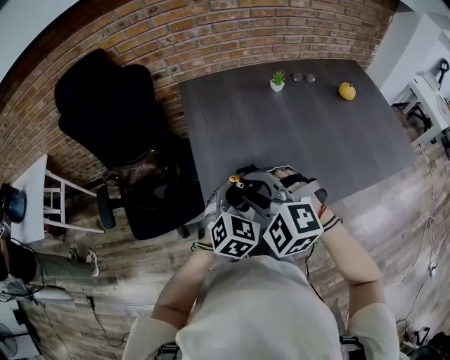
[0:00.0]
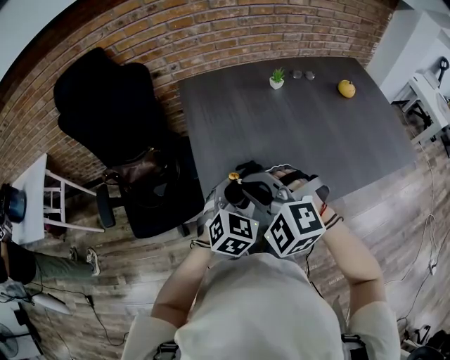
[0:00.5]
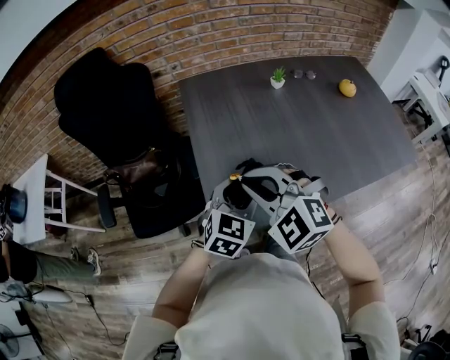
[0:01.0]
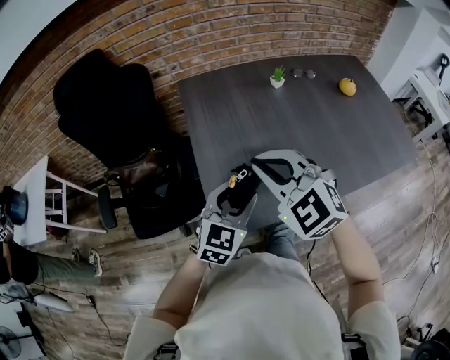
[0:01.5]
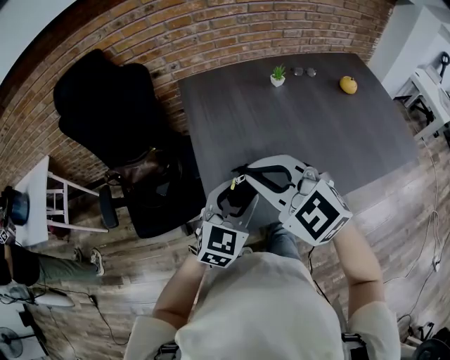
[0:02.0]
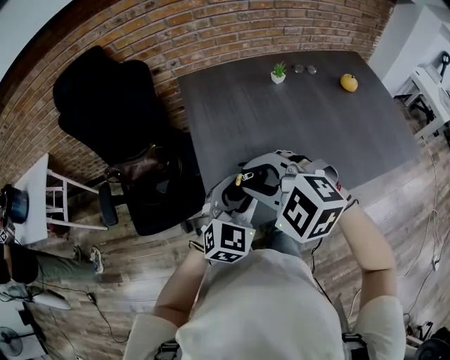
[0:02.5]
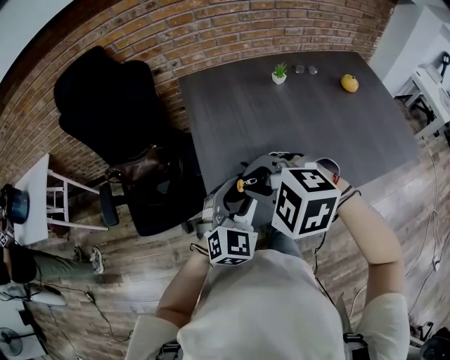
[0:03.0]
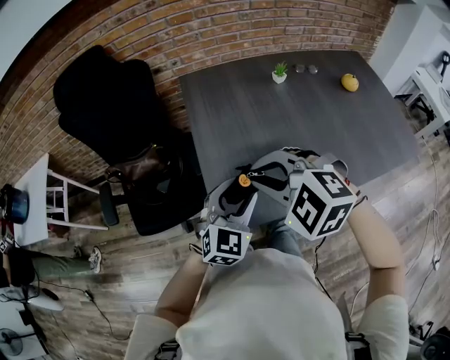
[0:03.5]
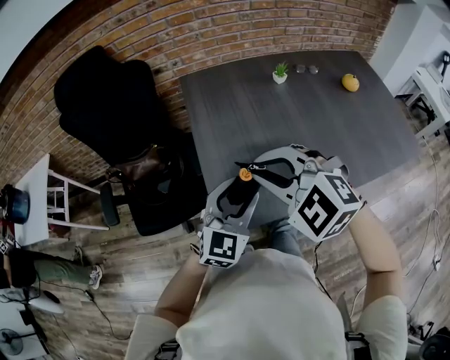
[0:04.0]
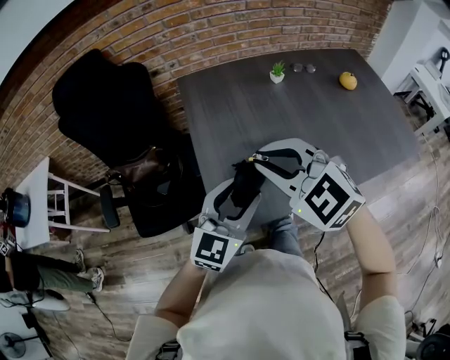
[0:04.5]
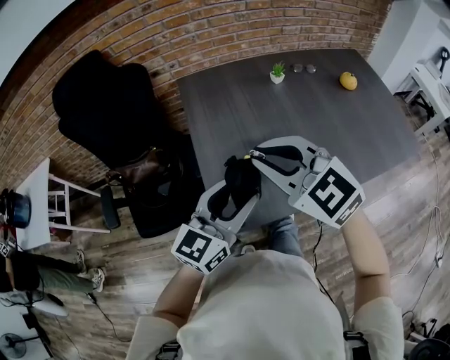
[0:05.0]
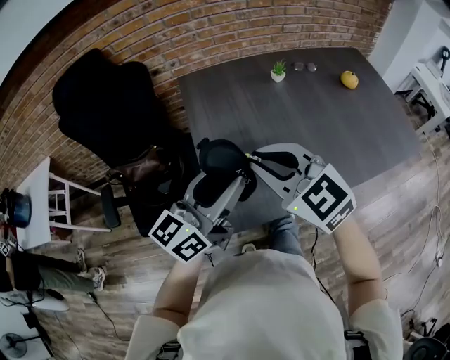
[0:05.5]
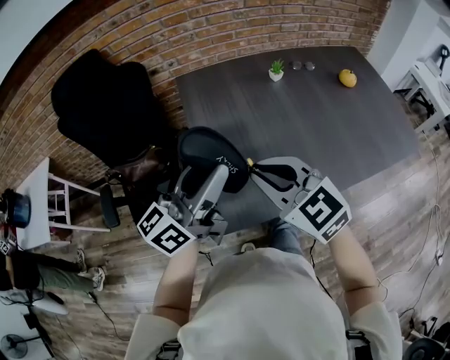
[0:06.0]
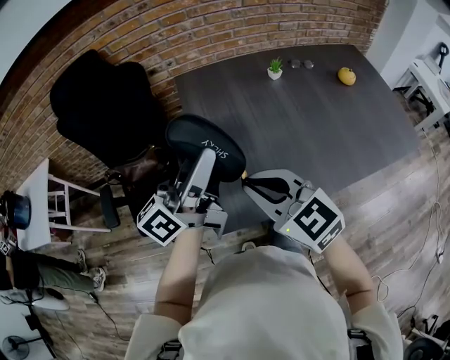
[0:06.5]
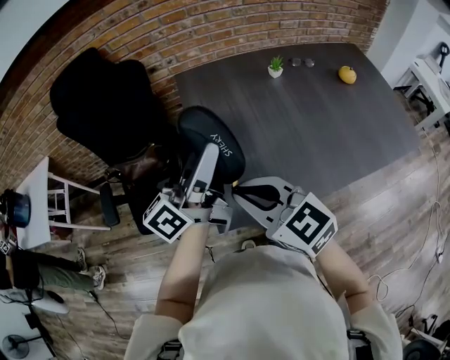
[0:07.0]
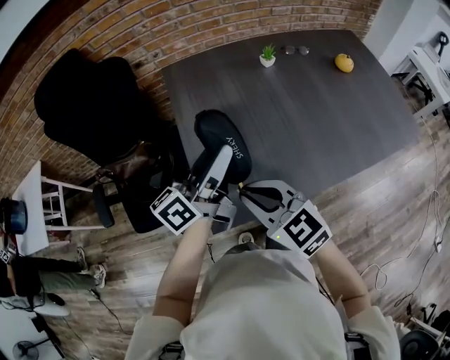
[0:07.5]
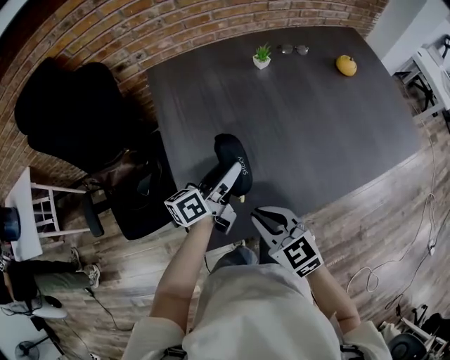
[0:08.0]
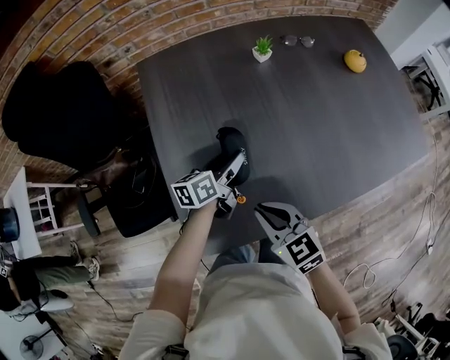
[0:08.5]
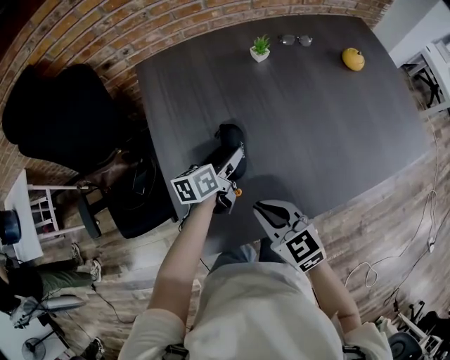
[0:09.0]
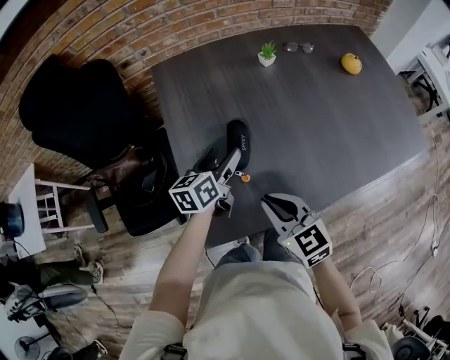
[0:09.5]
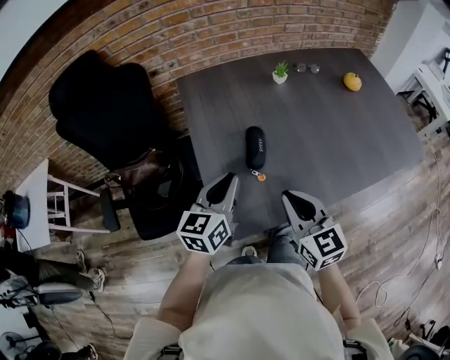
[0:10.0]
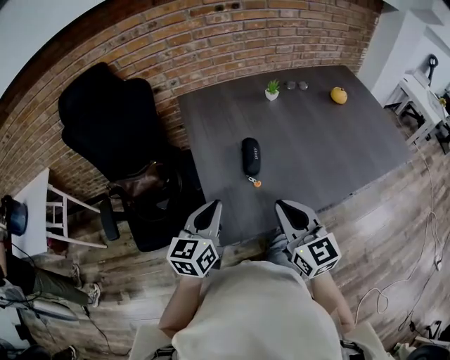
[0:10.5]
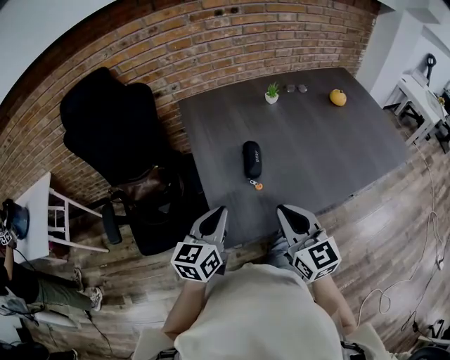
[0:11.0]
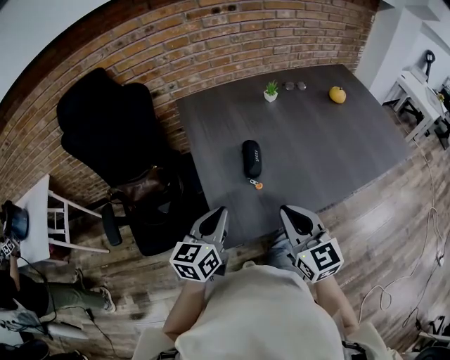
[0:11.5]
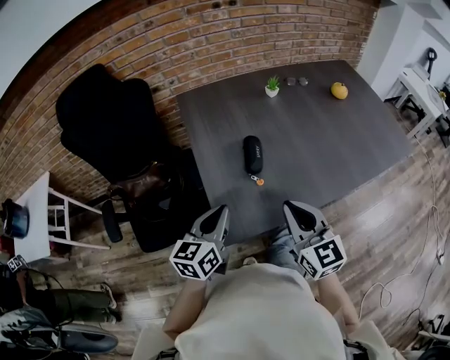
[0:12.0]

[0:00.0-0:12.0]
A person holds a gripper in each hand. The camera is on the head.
0:00.0 to 0:02.0: The right gripper travels upward by some 10 cm, and changes its angle by about 30 degrees.
0:04.0 to 0:06.0: The right gripper swivels roughly 30 degrees; the left gripper moves upward, approximately 15 cm, and twists some 50 degrees counterclockwise, seen from behind.
0:06.0 to 0:08.0: The right gripper moves downward, about 15 cm. The left gripper heads downward, to the right and forward, covering approximately 25 cm, and rotates roughly 30 degrees.
0:08.0 to 0:10.0: The right gripper travels upward by approximately 5 cm, and rotates about 20 degrees; the left gripper is displaced backward, to the left and upward by some 15 cm, changes its angle by roughly 40 degrees, and closes its fingers.
0:10.0 to 0:12.0: The left gripper goes roughly 10 cm backward. The right gripper changes place by roughly 5 cm.

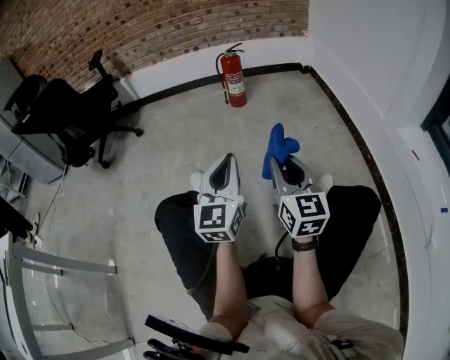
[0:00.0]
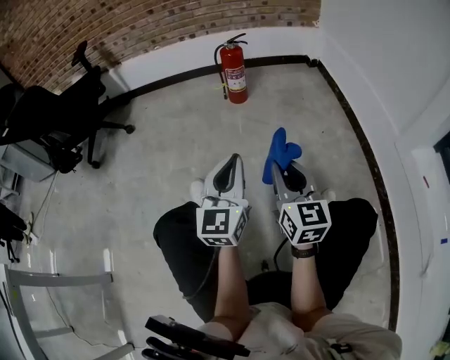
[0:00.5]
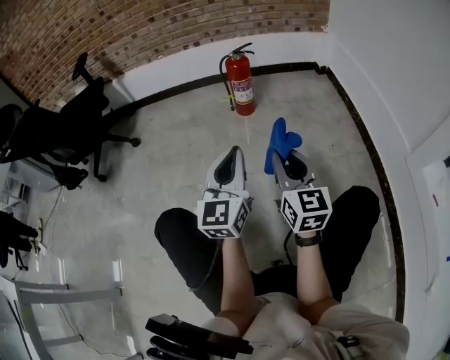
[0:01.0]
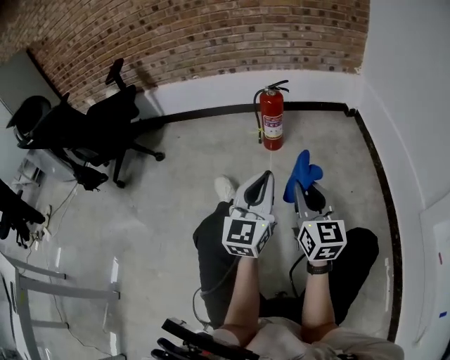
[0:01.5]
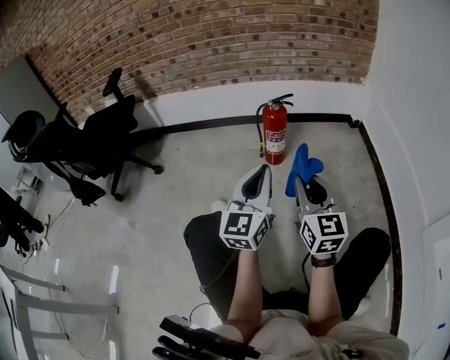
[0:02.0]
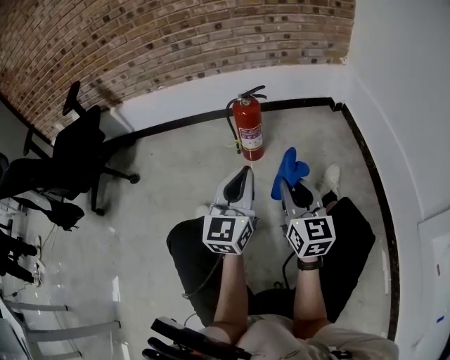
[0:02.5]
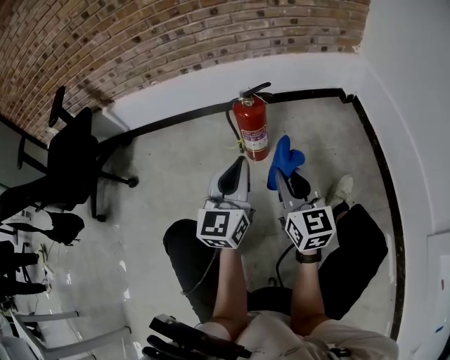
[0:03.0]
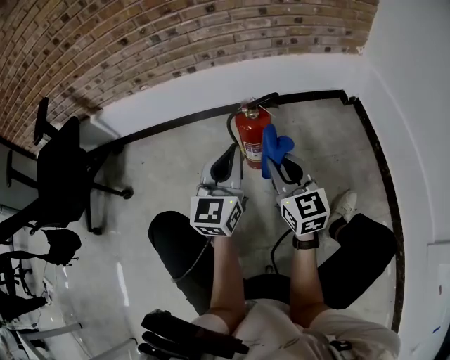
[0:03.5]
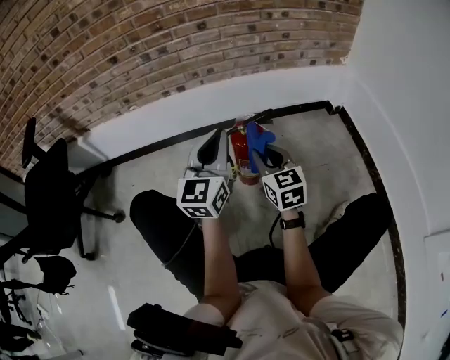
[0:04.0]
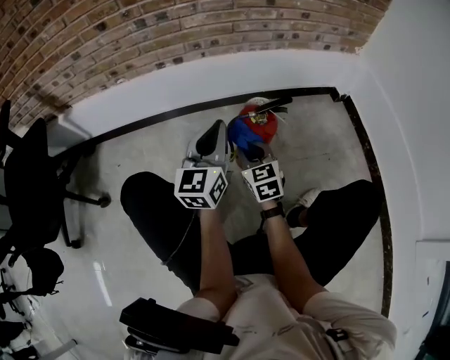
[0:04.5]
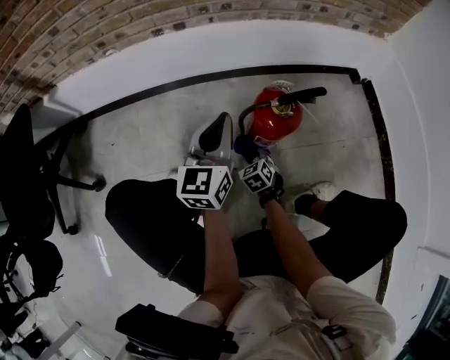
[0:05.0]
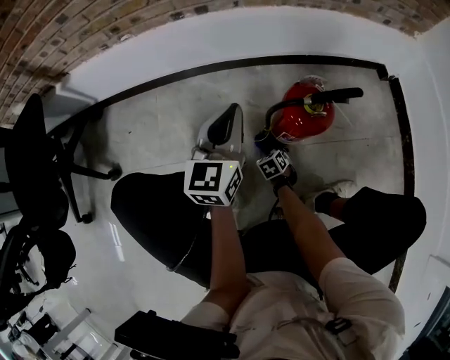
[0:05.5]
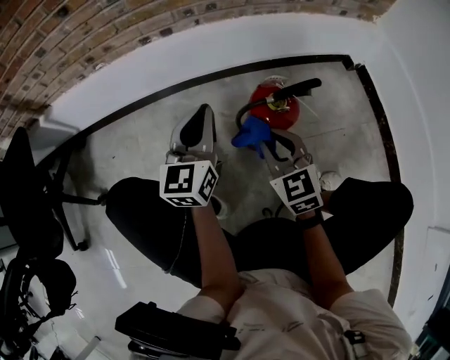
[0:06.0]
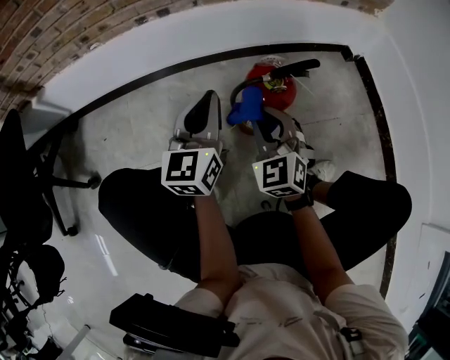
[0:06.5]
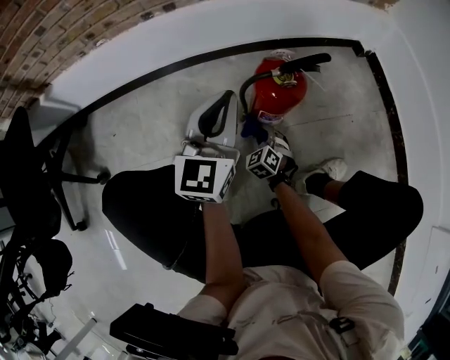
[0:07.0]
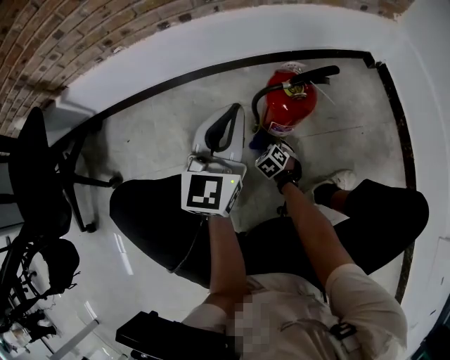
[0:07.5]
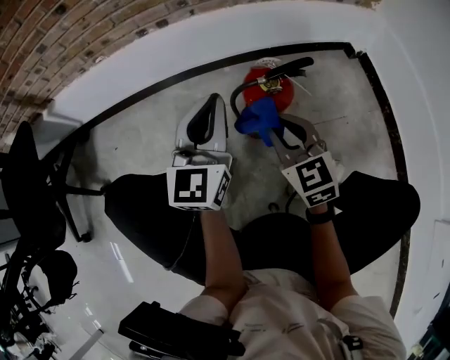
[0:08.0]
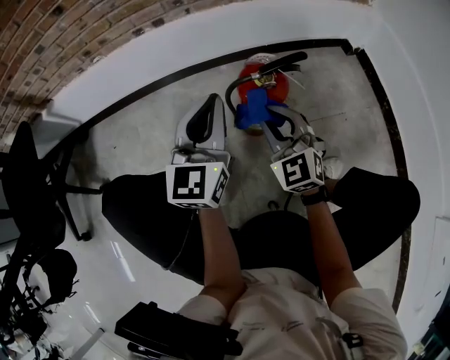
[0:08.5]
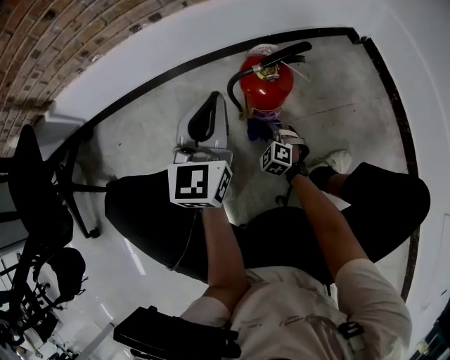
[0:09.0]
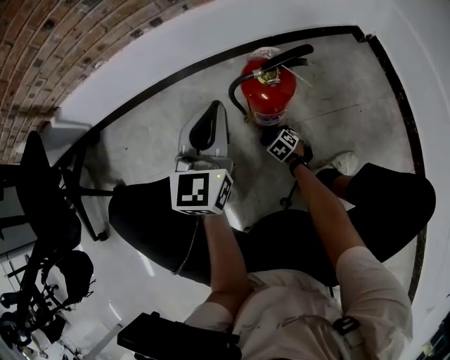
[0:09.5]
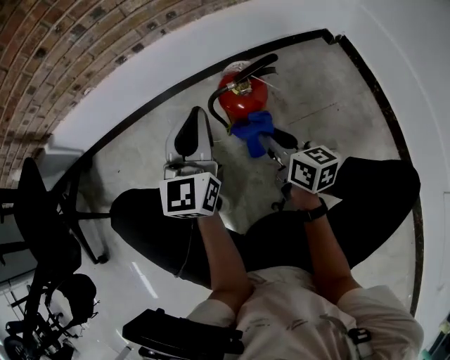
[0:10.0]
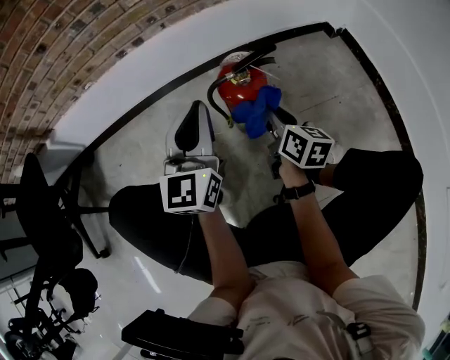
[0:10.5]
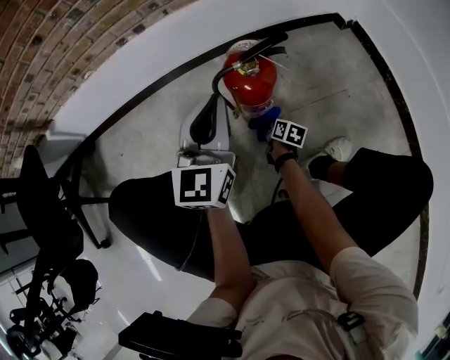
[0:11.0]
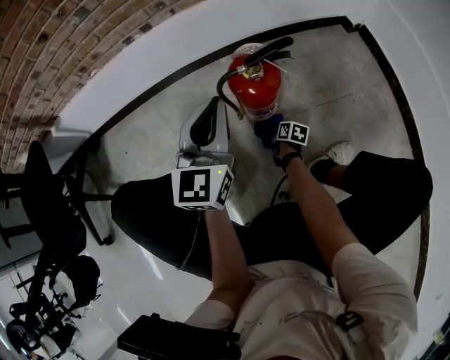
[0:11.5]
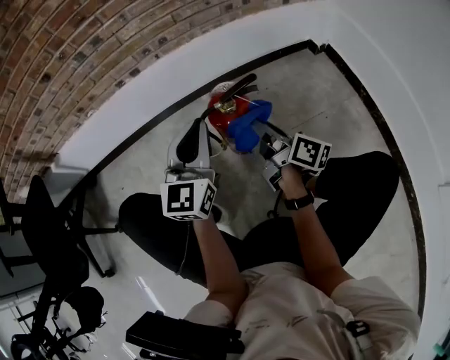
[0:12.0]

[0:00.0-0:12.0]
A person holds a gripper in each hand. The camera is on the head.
0:00.0 to 0:02.0: The grippers both shift forward by roughly 35 cm.
0:02.0 to 0:04.0: The two grippers go some 35 cm forward.
0:04.0 to 0:06.0: The left gripper heads downward, forward and to the left, covering roughly 20 cm; the right gripper shifts some 5 cm to the left, and travels downward and back again, about 50 cm each way.
0:06.0 to 0:08.0: The left gripper changes place by about 10 cm; the right gripper travels downward and back again, about 35 cm each way.
0:08.0 to 0:10.0: The right gripper travels downward and back again, about 40 cm each way, and twists some 50 degrees clockwise, seen from behind.
0:10.0 to 0:12.0: The right gripper goes downward and returns, some 35 cm each way, and swivels about 30 degrees.

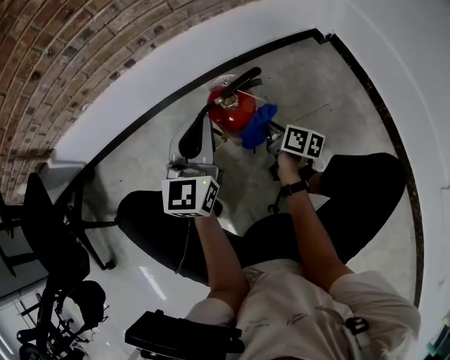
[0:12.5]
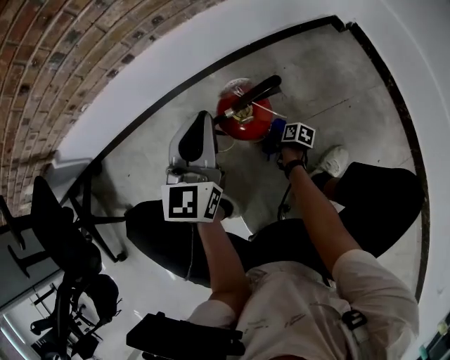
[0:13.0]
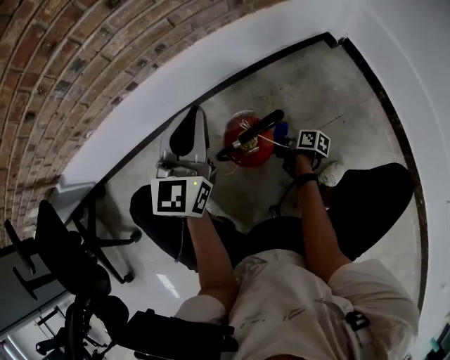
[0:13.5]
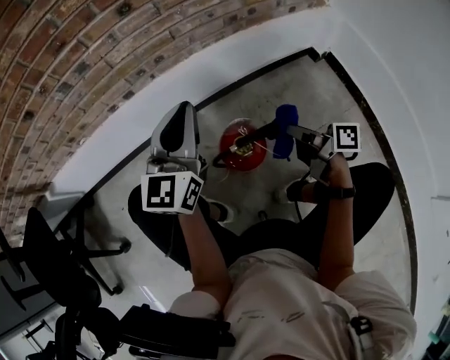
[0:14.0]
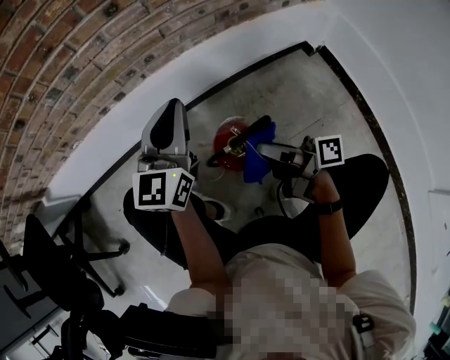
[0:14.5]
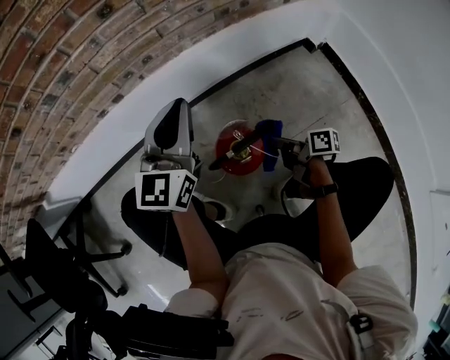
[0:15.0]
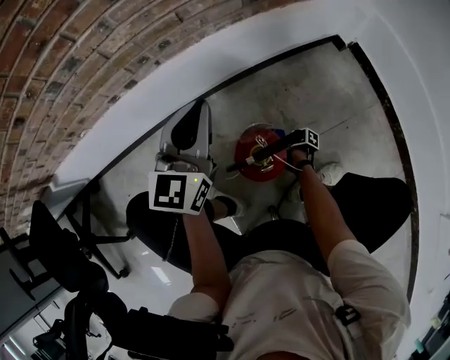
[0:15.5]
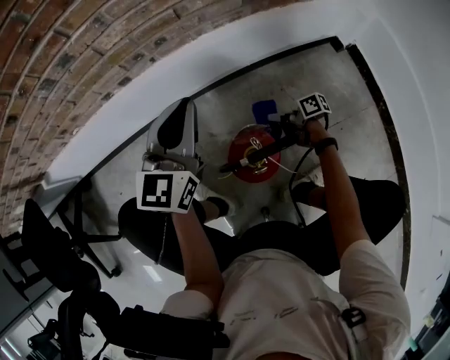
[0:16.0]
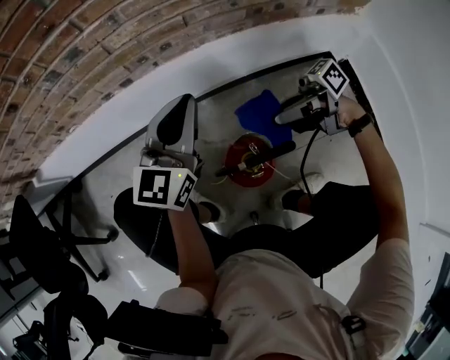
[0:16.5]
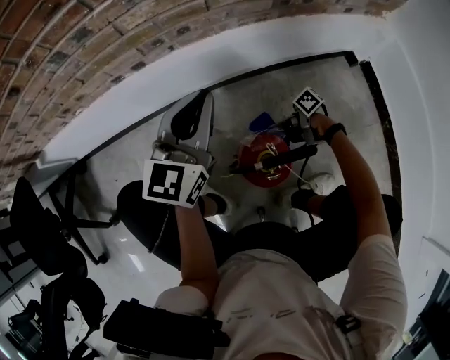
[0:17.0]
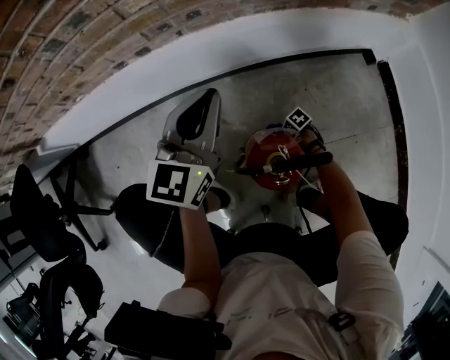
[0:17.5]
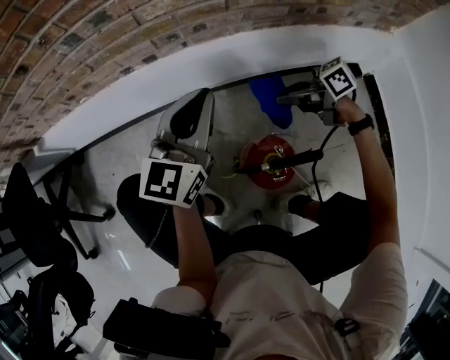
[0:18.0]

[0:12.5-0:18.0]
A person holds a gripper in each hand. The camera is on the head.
0:12.5 to 0:14.5: The left gripper goes roughly 15 cm forward and upward. Meanwhile the right gripper reaches approximately 30 cm downward, then returns, and changes its angle by roughly 40 degrees.
0:14.5 to 0:16.0: The left gripper travels downward by some 5 cm. The right gripper travels downward by some 25 cm, and swivels about 30 degrees.
0:16.0 to 0:18.0: The right gripper swings up and down, about 50 cm each way, with 2 reversals, and swivels roughly 50 degrees.
